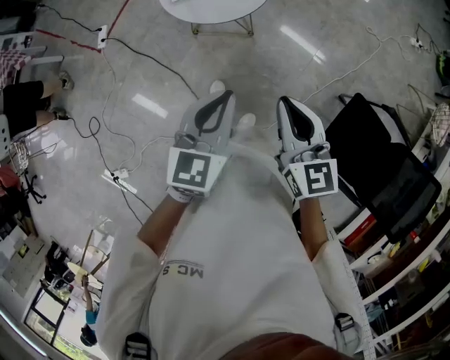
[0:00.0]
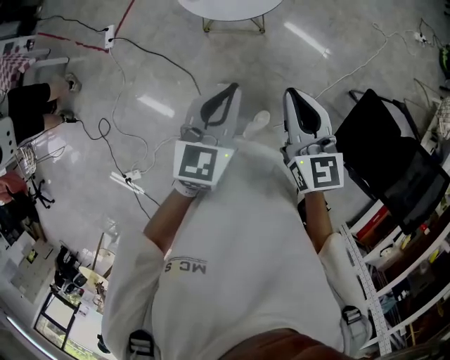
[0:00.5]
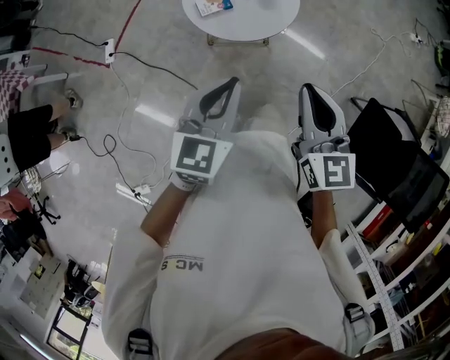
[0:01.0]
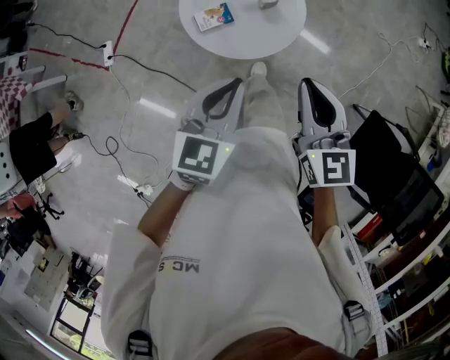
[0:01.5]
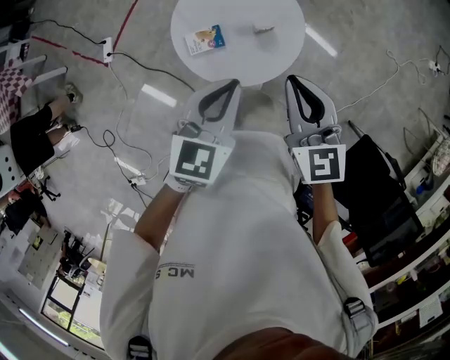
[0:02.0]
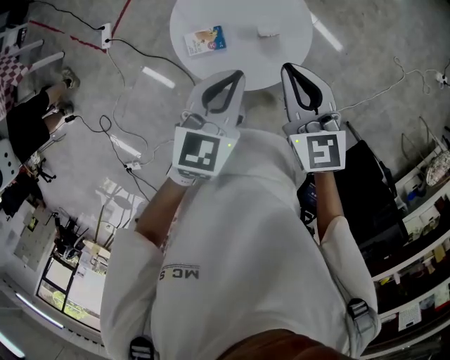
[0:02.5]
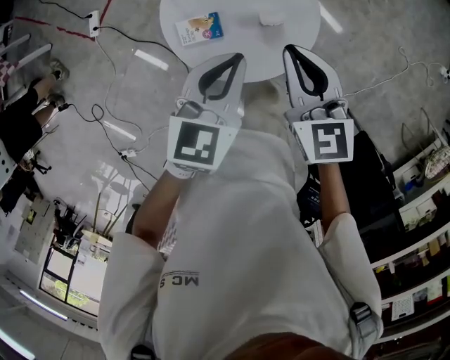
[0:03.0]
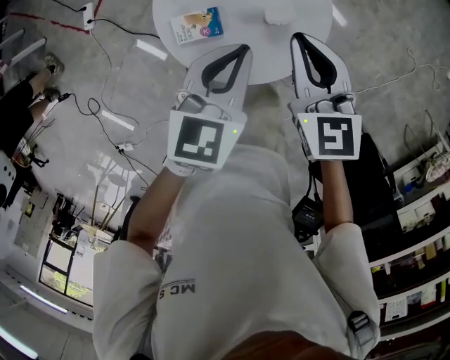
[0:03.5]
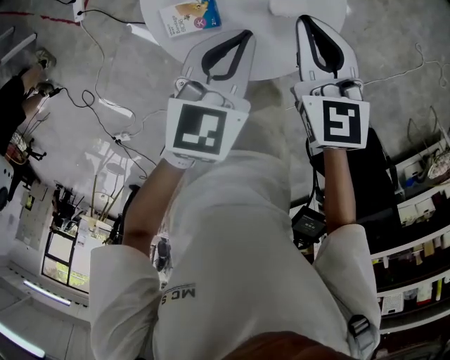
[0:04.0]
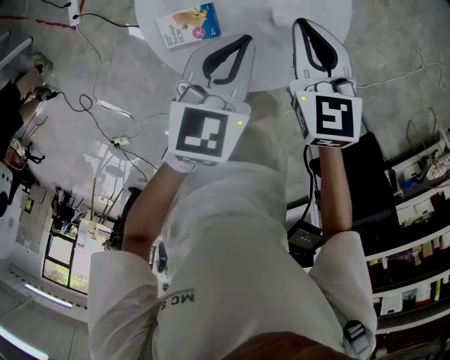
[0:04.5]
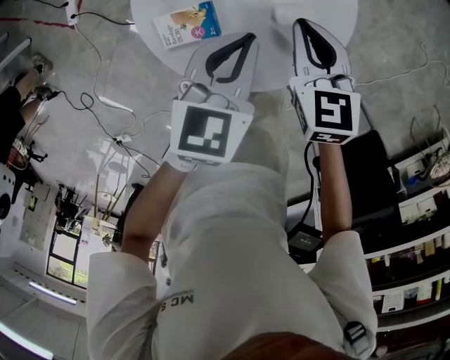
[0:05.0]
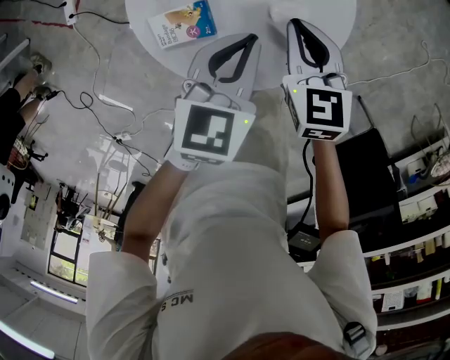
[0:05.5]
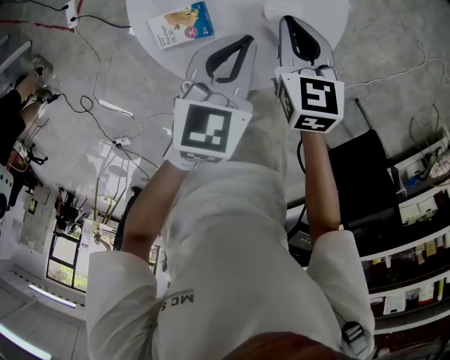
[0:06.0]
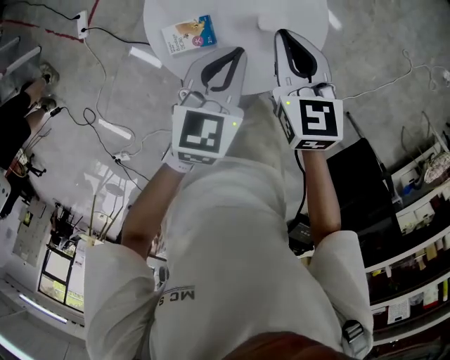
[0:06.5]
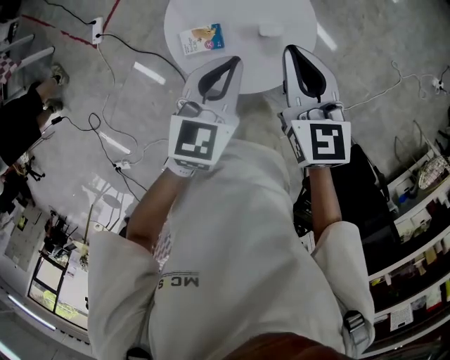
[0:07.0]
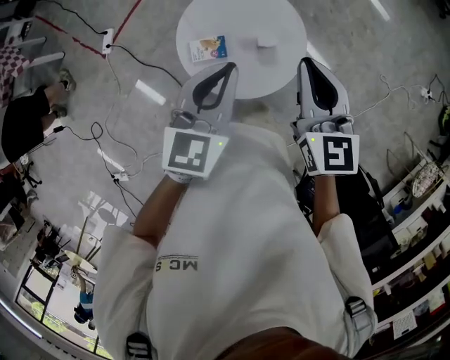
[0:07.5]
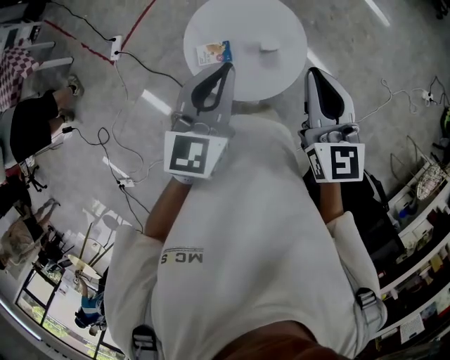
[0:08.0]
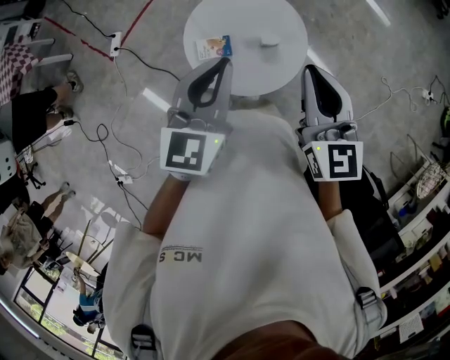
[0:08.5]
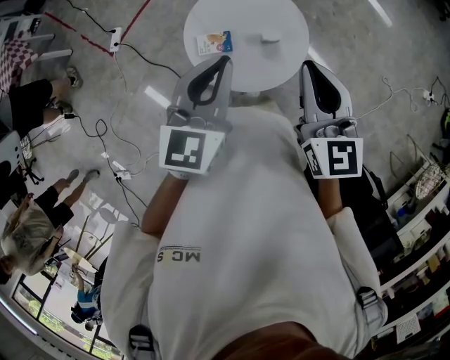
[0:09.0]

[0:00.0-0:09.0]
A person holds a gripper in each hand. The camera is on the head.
0:00.0 to 0:02.0: The two grippers travel together, forward, some 40 cm.
0:02.0 to 0:04.5: Both grippers travel together downward and forward, about 30 cm. The right gripper changes its angle by approximately 20 degrees.
0:04.5 to 0:07.0: Both grippers move upward, roughly 20 cm.
0:07.0 to 0:09.0: Both grippers travel together upward and backward, roughly 15 cm.

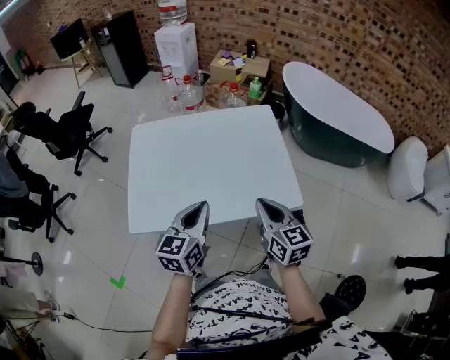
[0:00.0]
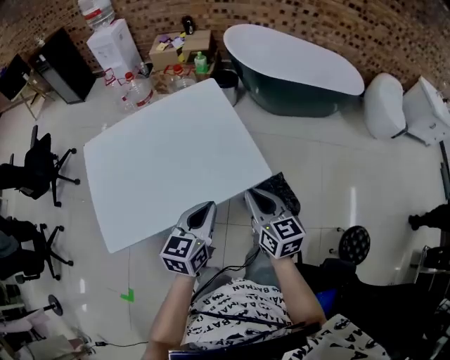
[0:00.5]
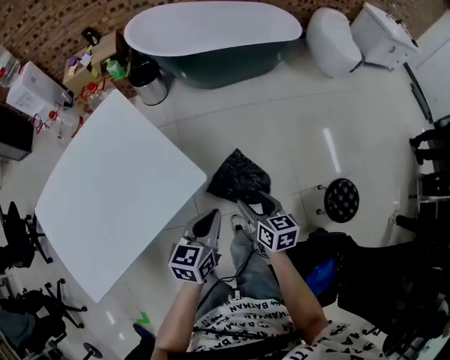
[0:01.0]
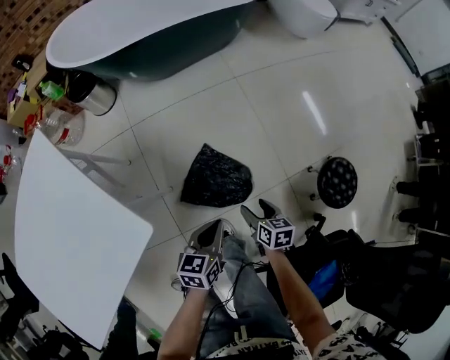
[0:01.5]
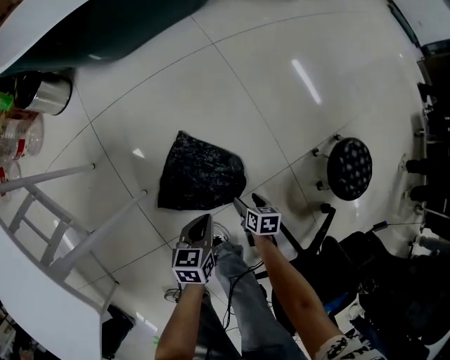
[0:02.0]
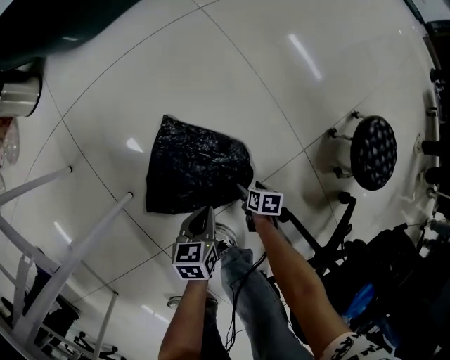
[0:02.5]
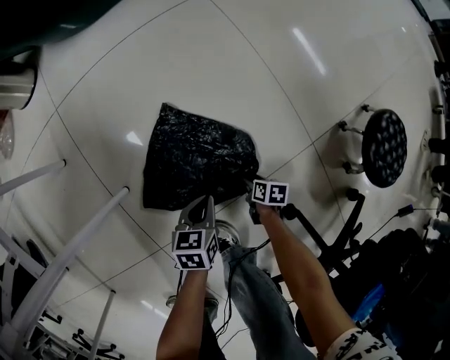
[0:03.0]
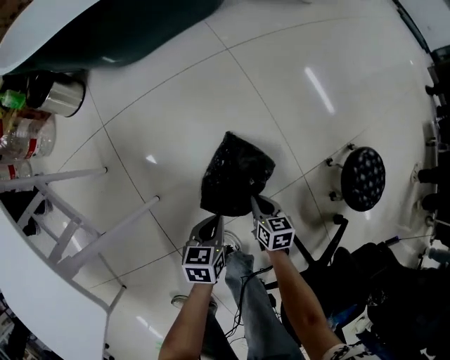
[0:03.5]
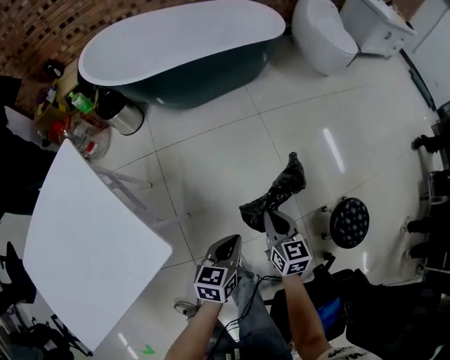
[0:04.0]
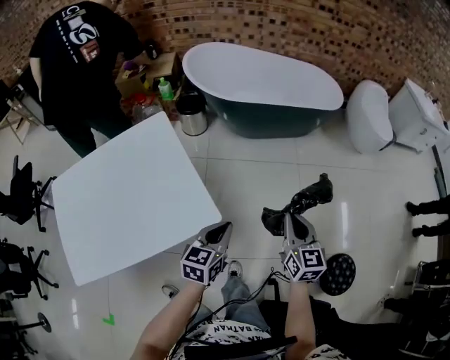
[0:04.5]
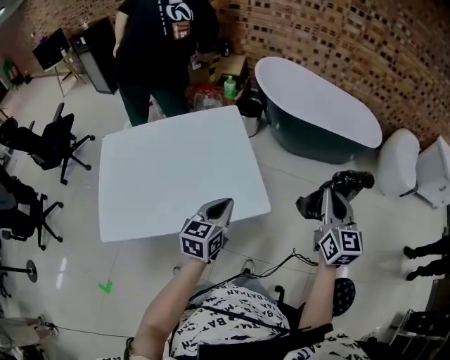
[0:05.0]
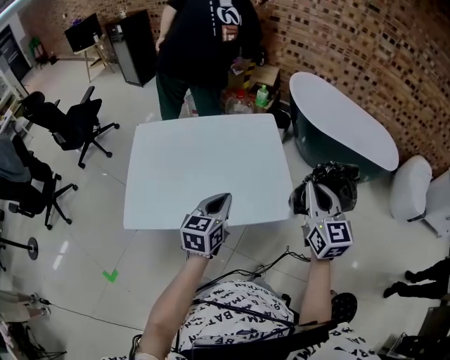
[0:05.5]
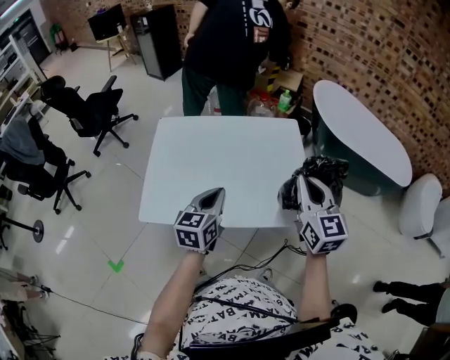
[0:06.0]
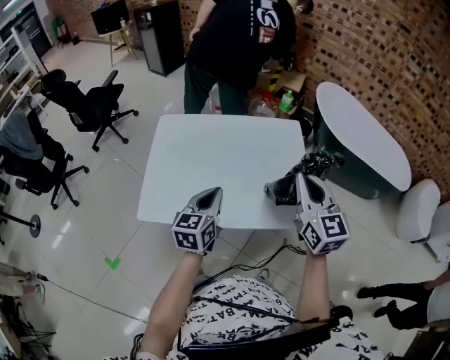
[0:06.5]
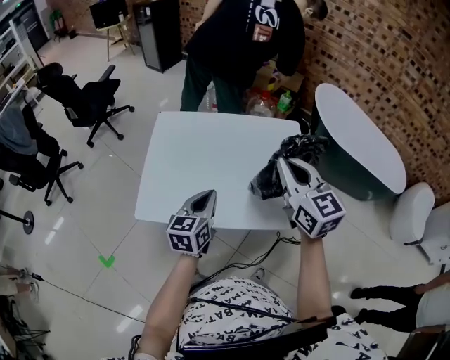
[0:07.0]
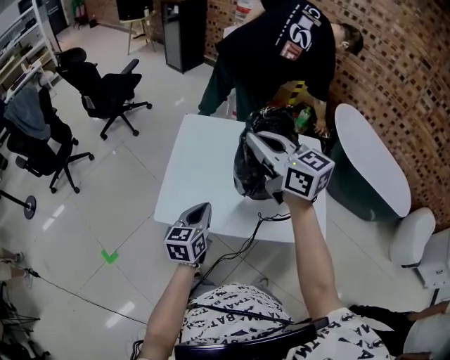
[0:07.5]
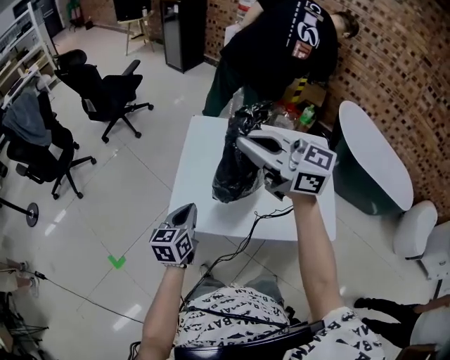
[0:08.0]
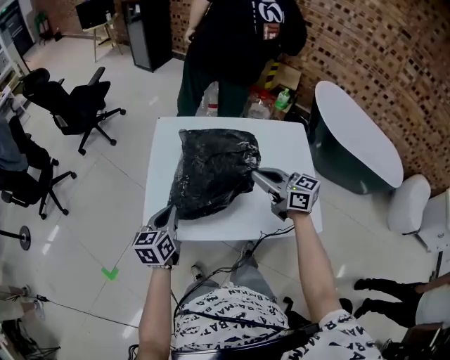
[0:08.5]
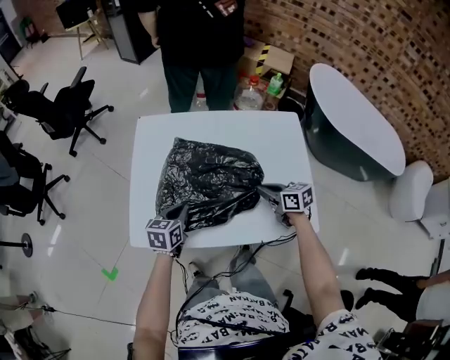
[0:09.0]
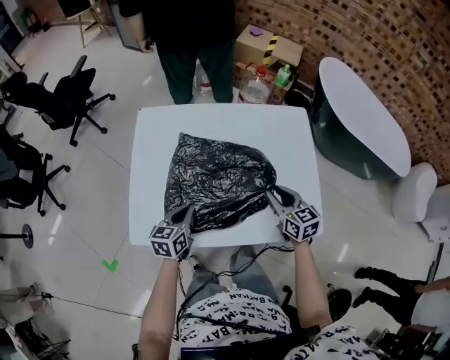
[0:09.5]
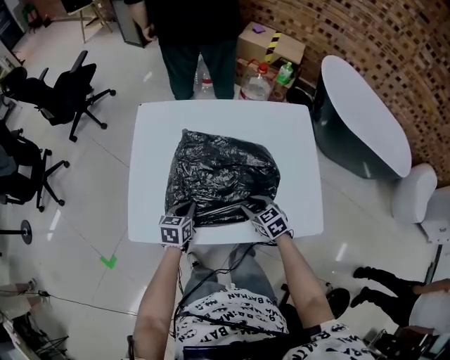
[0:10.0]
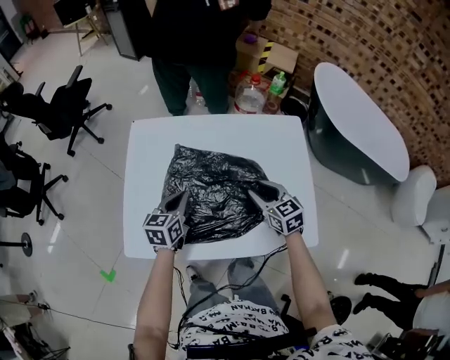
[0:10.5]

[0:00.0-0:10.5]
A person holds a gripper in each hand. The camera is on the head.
0:00.0 to 0:02.0: Both grippers are carried roughly 50 cm. The grippers both shift downward by roughly 70 cm. The left gripper turns by approximately 60 degrees. Meanwhile the right gripper tips its fingers downward by approximately 40 degrees, and opens up.
0:02.0 to 0:04.0: The left gripper shifts approximately 25 cm upward. Meanwhile the right gripper moves upward, about 40 cm, tips its fingers upward by roughly 30 degrees, and closes.
0:04.0 to 0:06.5: The two grippers travel together, roughly 60 cm. The left gripper turns by roughly 60 degrees. Meanwhile the right gripper rotates approximately 60 degrees.
0:06.5 to 0:08.5: The right gripper rotates roughly 40 degrees; the left gripper ends up roughly 20 cm from where it was.
0:08.5 to 0:10.5: The right gripper is displaced downward and to the right by approximately 20 cm, changes its angle by some 30 degrees, and opens its fingers; the left gripper heads to the right, forward and downward, covering about 20 cm.

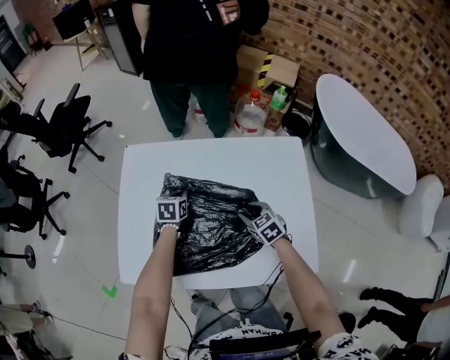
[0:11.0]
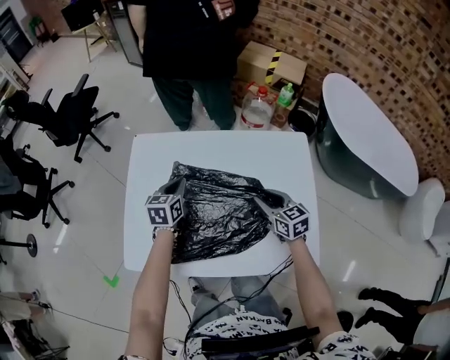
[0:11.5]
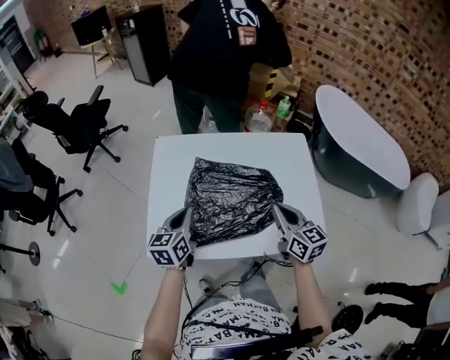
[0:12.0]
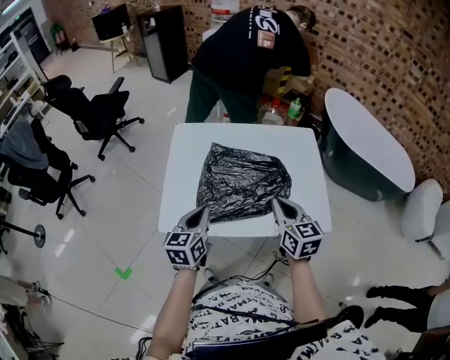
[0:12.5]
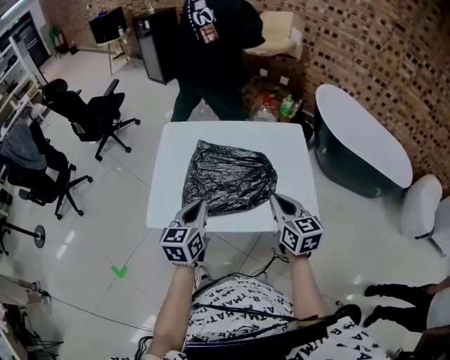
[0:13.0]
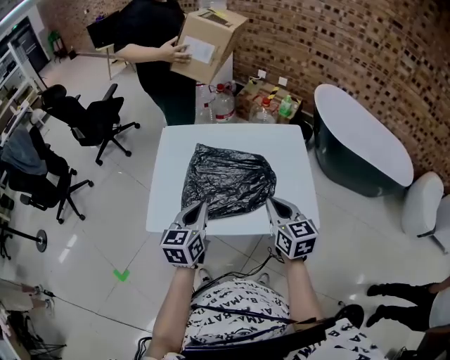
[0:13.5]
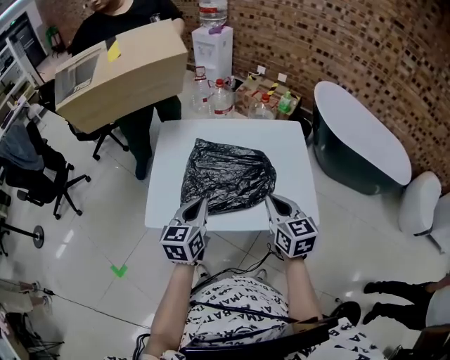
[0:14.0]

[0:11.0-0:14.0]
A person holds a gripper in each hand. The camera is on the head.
0:11.0 to 0:12.5: The right gripper is displaced upward and backward by about 35 cm, changes its angle by some 40 degrees, and closes. Meanwhile the left gripper travels backward and upward by some 40 cm, and swivels about 30 degrees.
0:12.5 to 0:14.0: The left gripper heads to the right, covering some 5 cm.

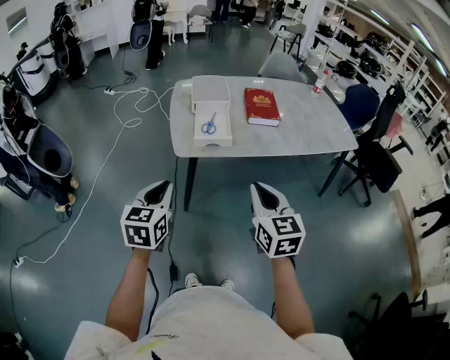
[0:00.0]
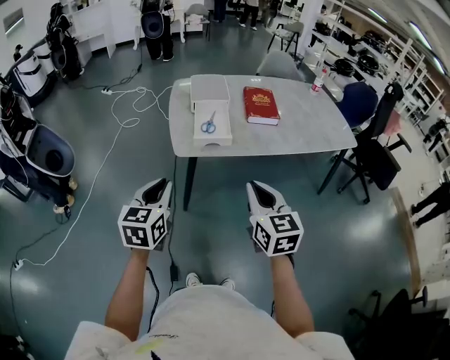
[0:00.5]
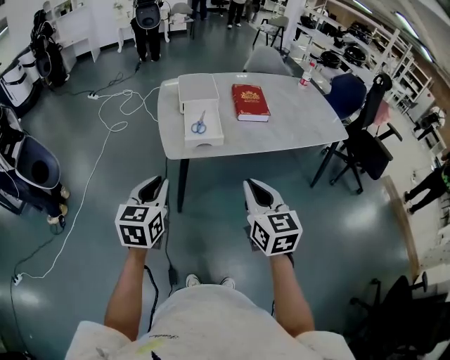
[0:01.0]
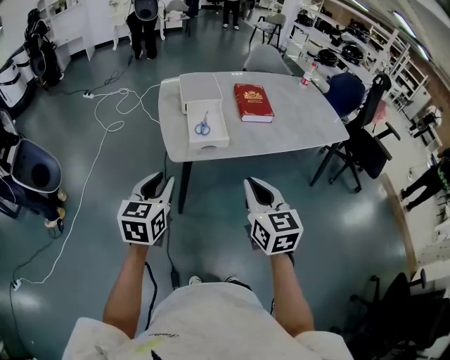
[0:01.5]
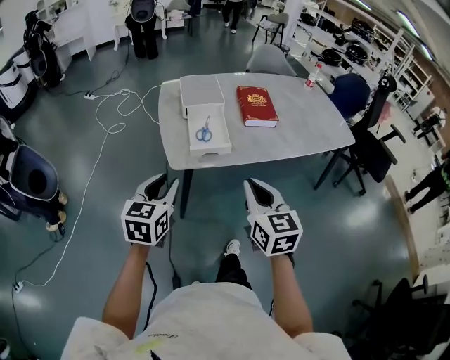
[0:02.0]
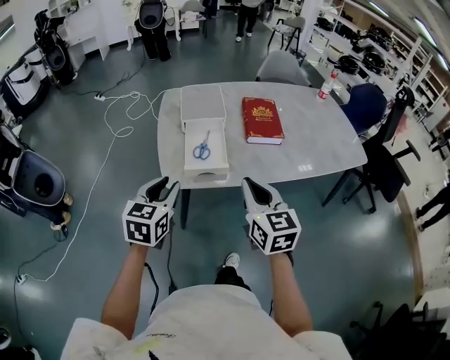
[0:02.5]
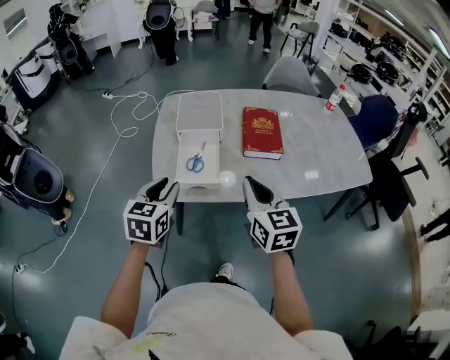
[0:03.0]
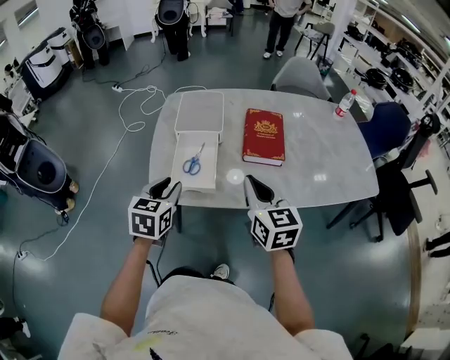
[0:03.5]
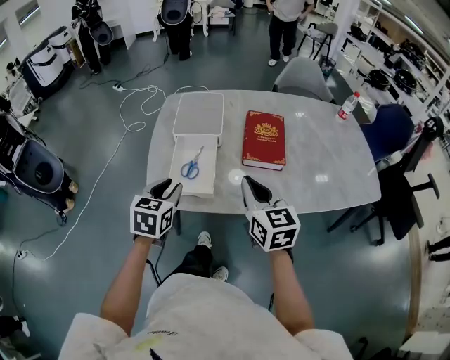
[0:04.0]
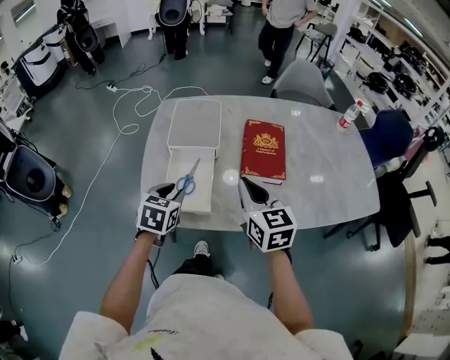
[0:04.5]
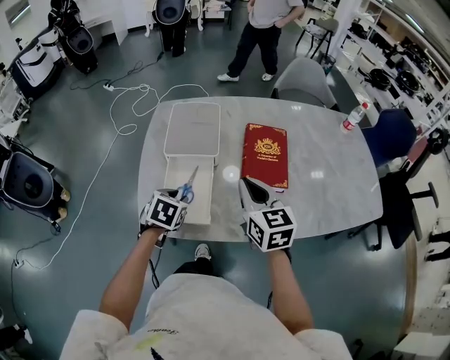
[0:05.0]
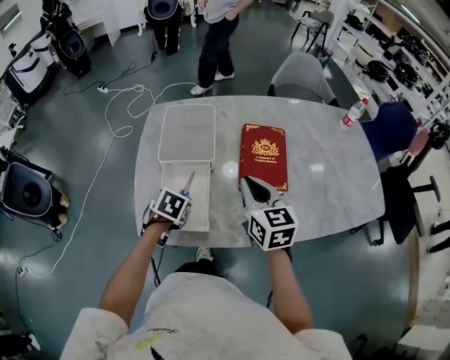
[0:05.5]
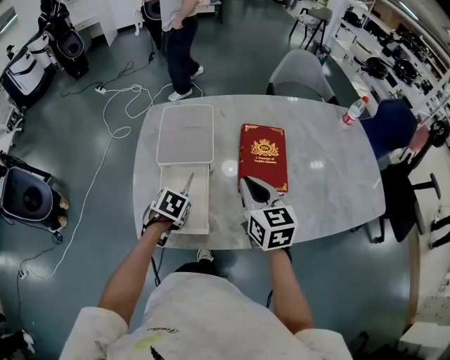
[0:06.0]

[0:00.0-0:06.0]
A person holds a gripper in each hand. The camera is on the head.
0:00.0 to 0:02.0: The left gripper shifts approximately 10 cm forward. The right gripper is displaced forward and to the left by about 10 cm.
0:02.0 to 0:04.0: Both grippers travel together forward and to the right, roughly 25 cm.
0:04.0 to 0:06.0: The right gripper travels forward by approximately 15 cm; the left gripper heads downward and forward, covering roughly 20 cm, and tips its fingers downward by about 40 degrees.
